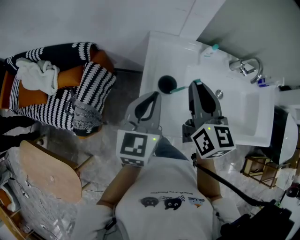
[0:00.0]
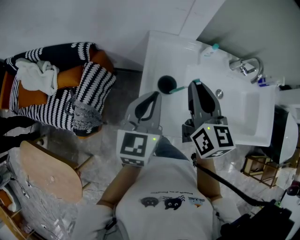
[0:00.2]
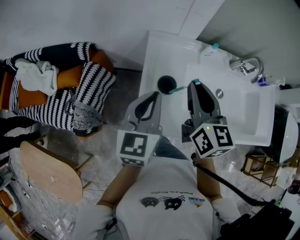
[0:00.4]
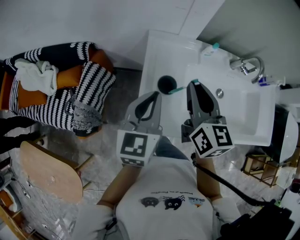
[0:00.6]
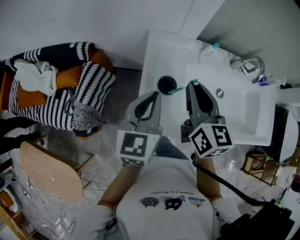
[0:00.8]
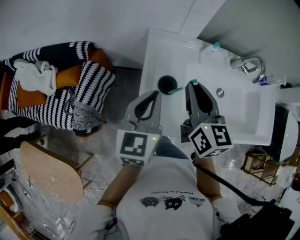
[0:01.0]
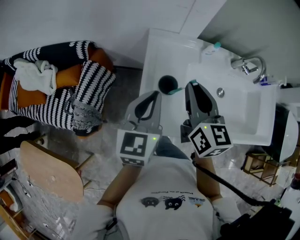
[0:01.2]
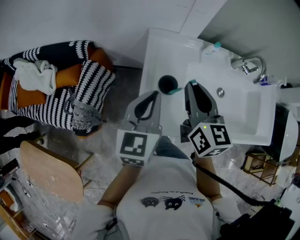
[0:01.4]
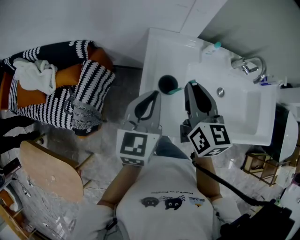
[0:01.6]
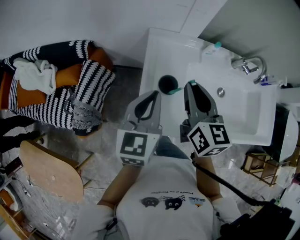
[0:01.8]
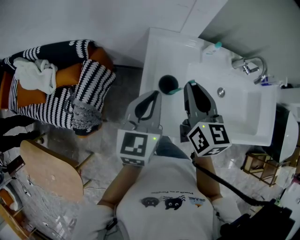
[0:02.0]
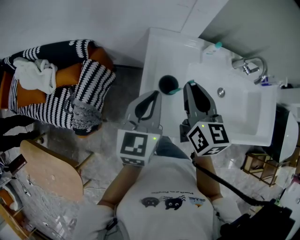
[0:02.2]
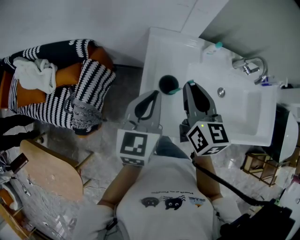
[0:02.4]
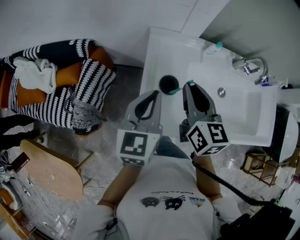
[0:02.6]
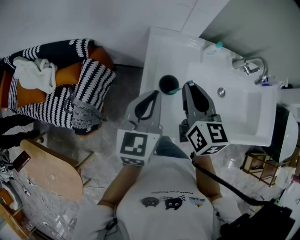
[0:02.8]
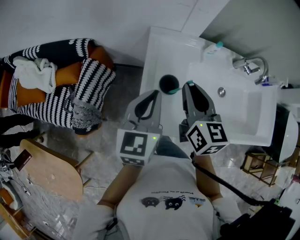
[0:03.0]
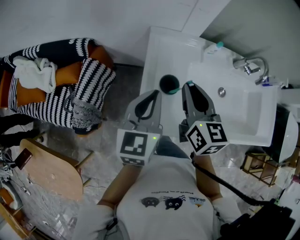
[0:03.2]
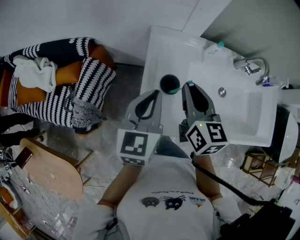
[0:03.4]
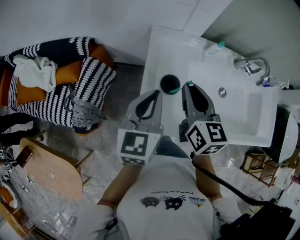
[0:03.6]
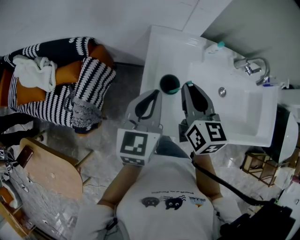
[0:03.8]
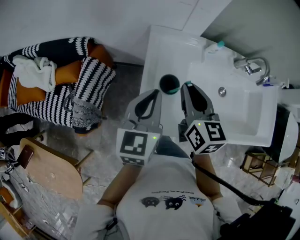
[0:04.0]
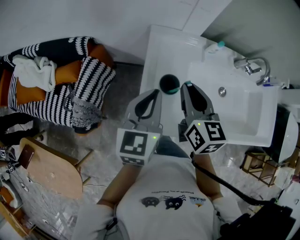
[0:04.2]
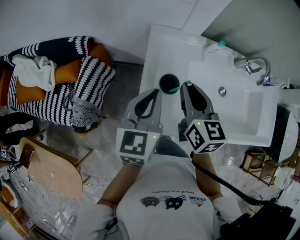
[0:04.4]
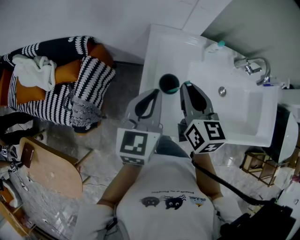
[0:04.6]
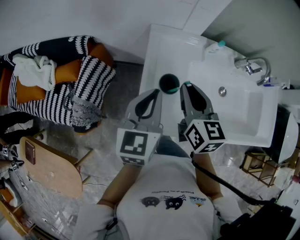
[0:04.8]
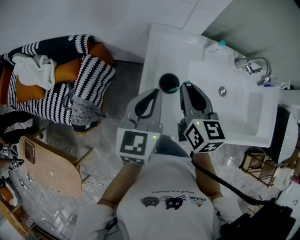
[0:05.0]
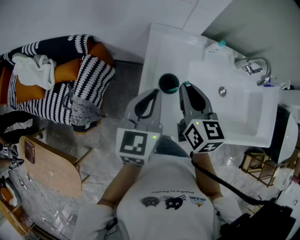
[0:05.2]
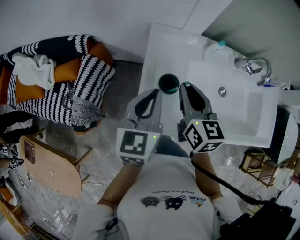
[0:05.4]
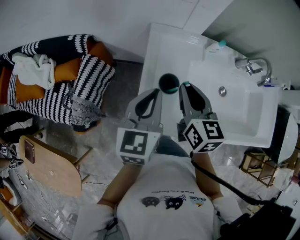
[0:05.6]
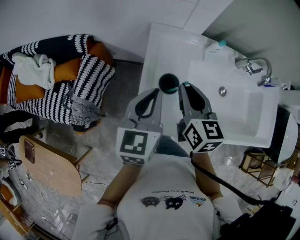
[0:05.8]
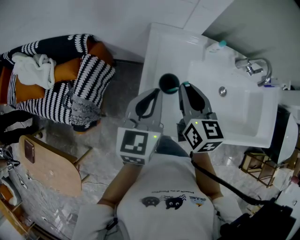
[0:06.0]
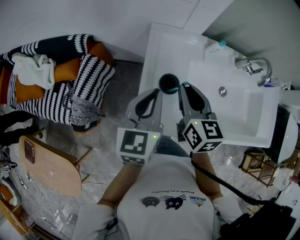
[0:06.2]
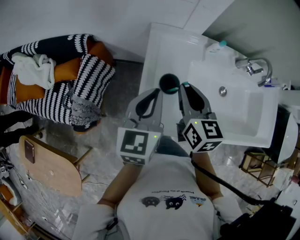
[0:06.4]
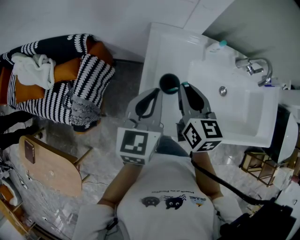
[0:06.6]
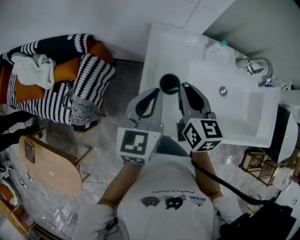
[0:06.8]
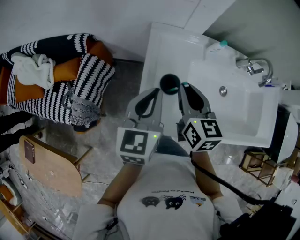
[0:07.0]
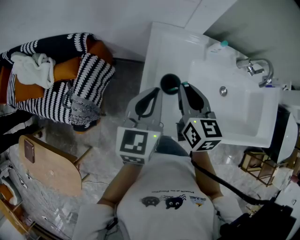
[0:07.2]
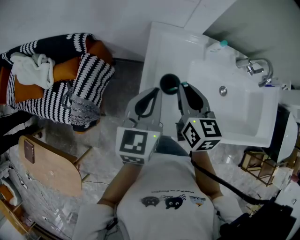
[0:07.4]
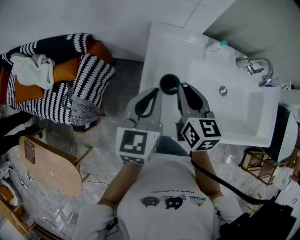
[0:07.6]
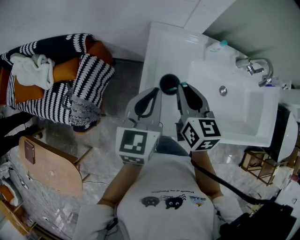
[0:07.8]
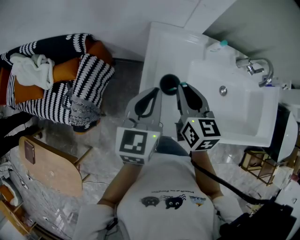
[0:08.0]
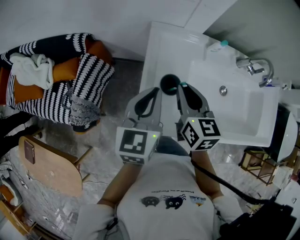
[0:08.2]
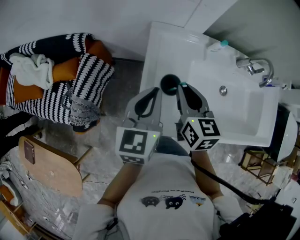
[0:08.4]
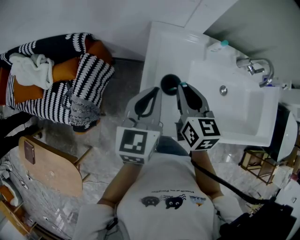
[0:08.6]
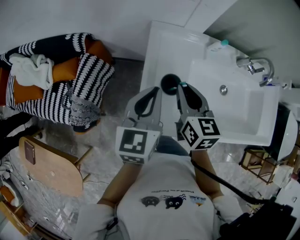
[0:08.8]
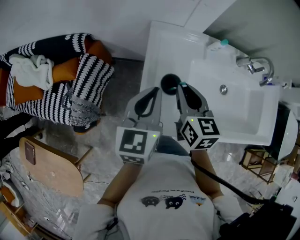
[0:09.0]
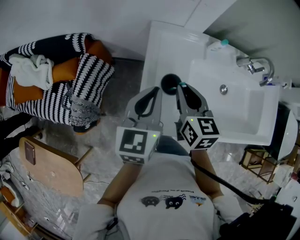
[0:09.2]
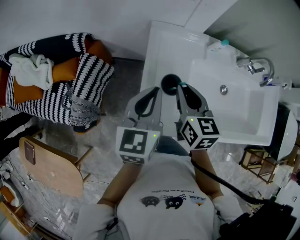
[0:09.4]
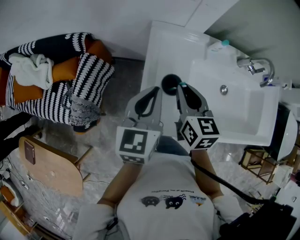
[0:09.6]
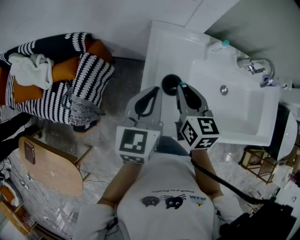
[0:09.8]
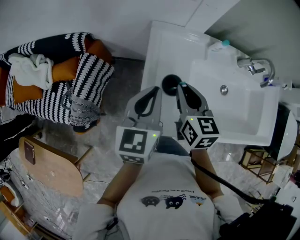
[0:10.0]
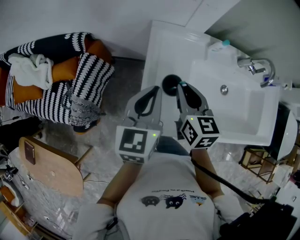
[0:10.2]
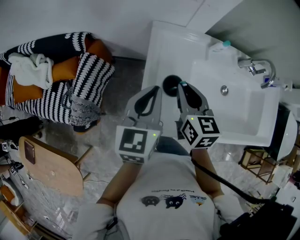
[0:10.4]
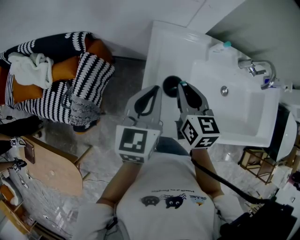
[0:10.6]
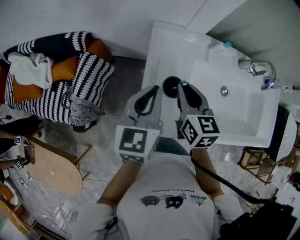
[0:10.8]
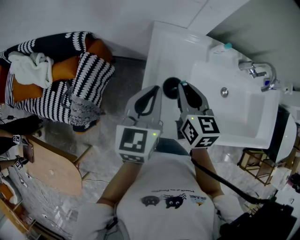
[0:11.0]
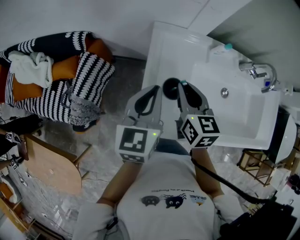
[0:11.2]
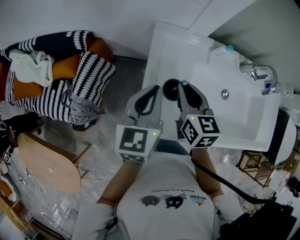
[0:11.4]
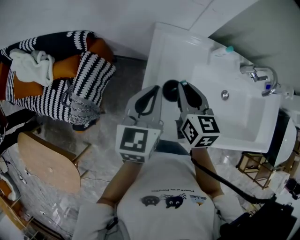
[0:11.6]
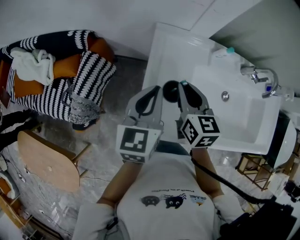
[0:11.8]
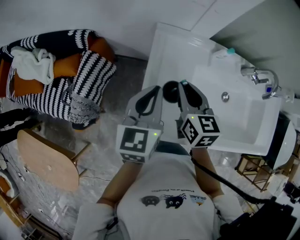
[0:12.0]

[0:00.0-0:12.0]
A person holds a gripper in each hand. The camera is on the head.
0:00.0 to 0:01.6: The grippers stay close to where they were, moving slightly.
0:01.6 to 0:04.4: The grippers make only small movements.
0:04.4 to 0:06.0: Both grippers stay about where they are.
0:06.0 to 0:09.0: The grippers move only a little.
0:09.0 to 0:10.4: The two grippers keep their place.
0:10.4 to 0:12.0: The grippers stay close to where they were, moving slightly.

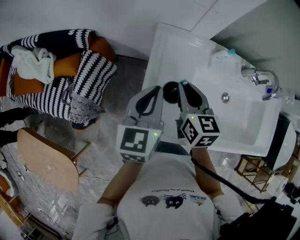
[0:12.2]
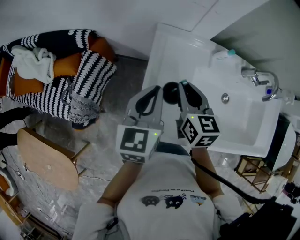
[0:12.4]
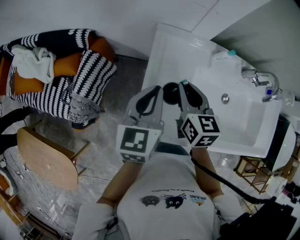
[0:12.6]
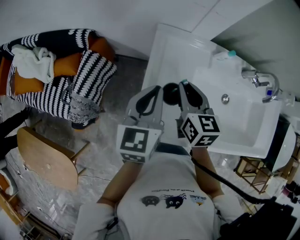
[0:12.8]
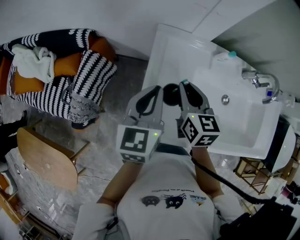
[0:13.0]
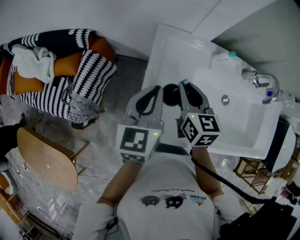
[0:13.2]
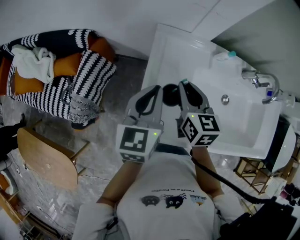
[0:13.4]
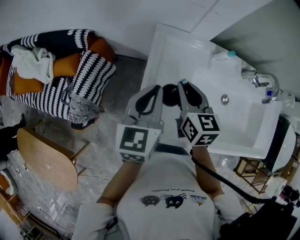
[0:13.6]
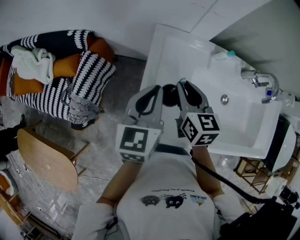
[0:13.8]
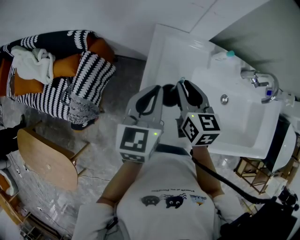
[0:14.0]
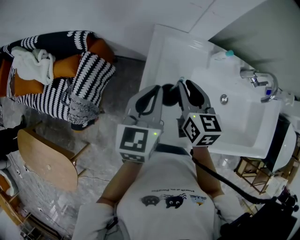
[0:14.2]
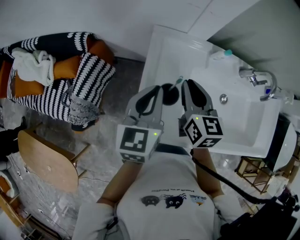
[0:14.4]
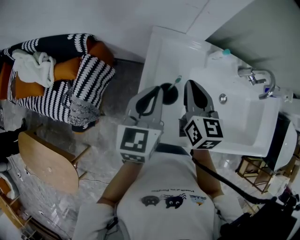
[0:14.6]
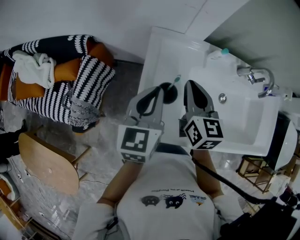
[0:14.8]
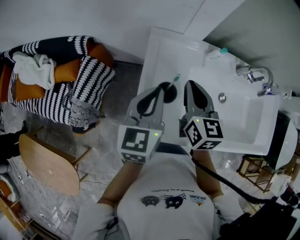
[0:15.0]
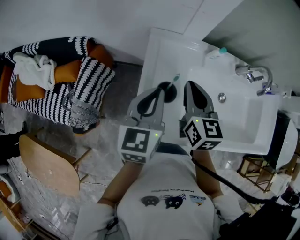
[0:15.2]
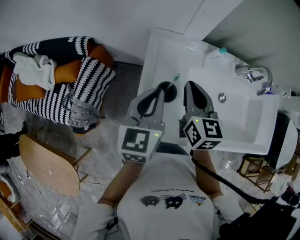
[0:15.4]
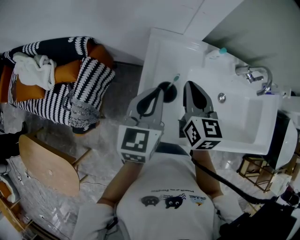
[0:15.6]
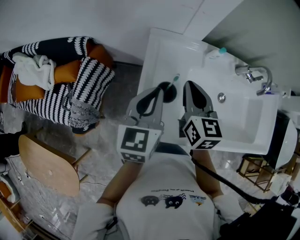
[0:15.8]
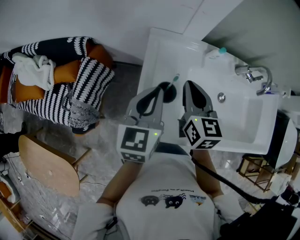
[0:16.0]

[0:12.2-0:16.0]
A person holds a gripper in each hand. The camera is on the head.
0:12.2 to 0:13.4: The grippers move only a little.
0:13.4 to 0:14.8: The right gripper shifts by approximately 5 cm.
0:14.8 to 0:16.0: Both grippers stay about where they are.

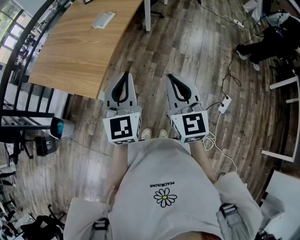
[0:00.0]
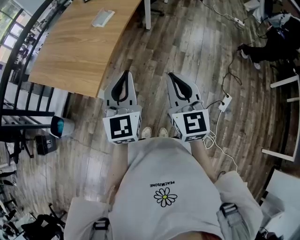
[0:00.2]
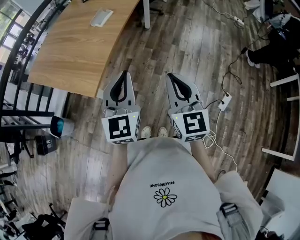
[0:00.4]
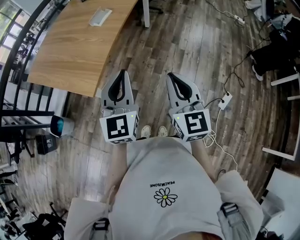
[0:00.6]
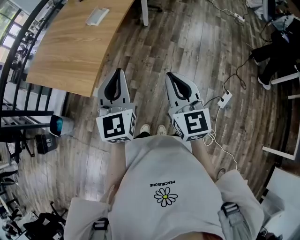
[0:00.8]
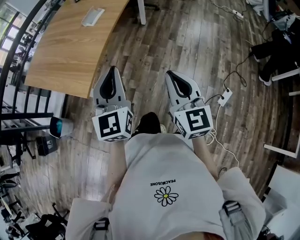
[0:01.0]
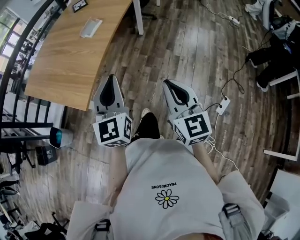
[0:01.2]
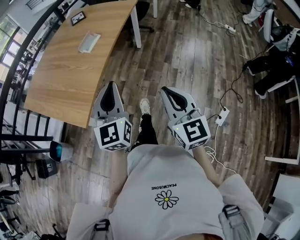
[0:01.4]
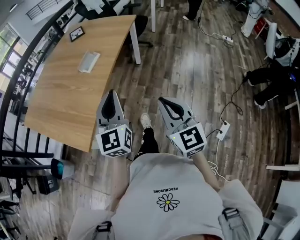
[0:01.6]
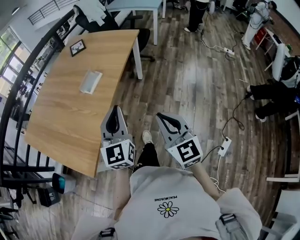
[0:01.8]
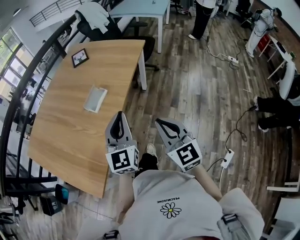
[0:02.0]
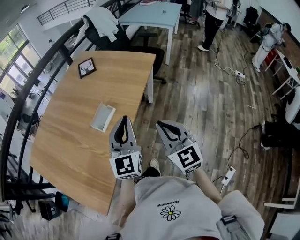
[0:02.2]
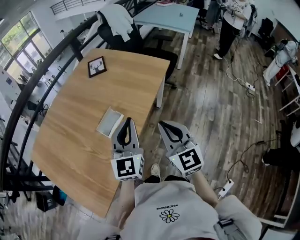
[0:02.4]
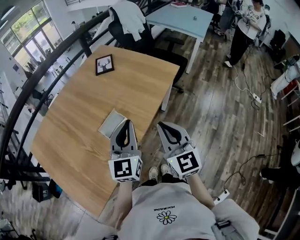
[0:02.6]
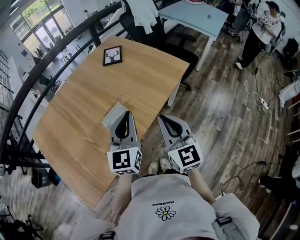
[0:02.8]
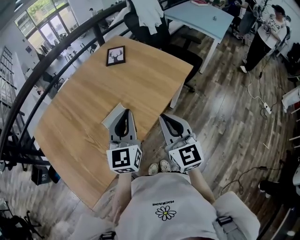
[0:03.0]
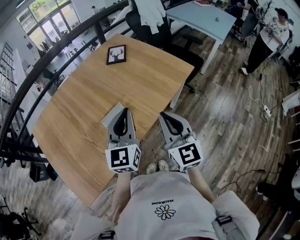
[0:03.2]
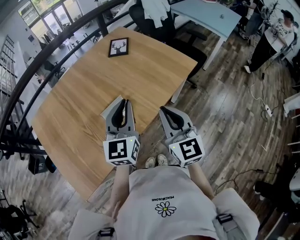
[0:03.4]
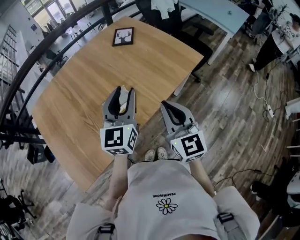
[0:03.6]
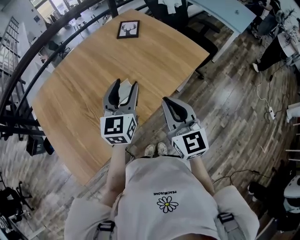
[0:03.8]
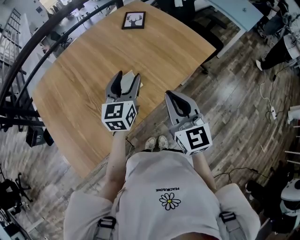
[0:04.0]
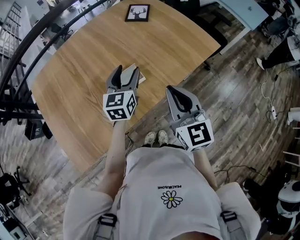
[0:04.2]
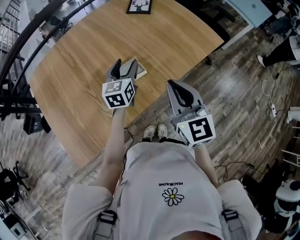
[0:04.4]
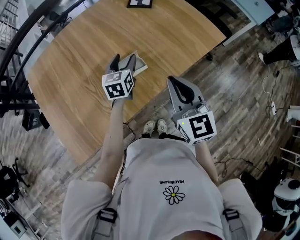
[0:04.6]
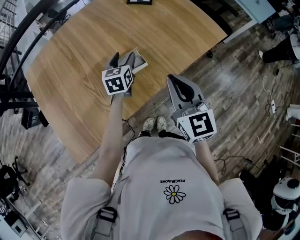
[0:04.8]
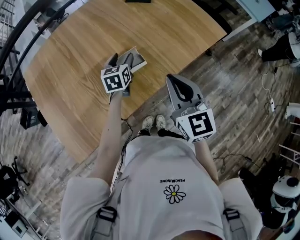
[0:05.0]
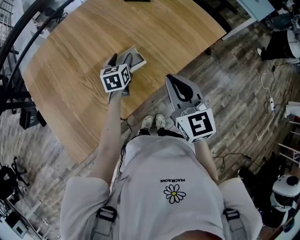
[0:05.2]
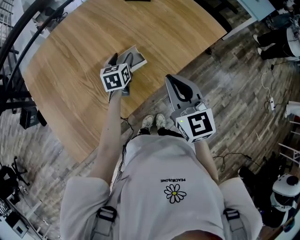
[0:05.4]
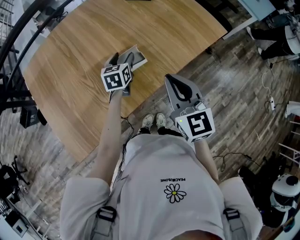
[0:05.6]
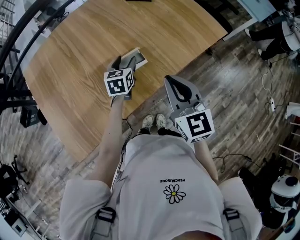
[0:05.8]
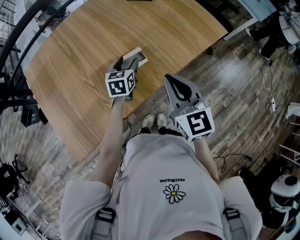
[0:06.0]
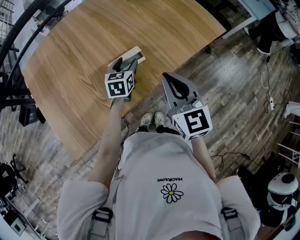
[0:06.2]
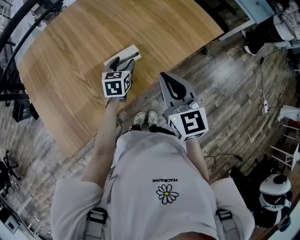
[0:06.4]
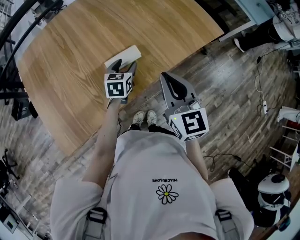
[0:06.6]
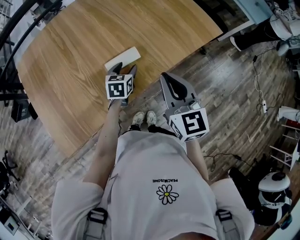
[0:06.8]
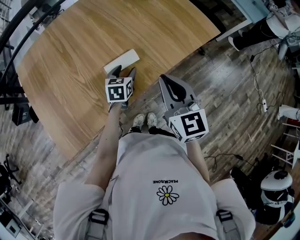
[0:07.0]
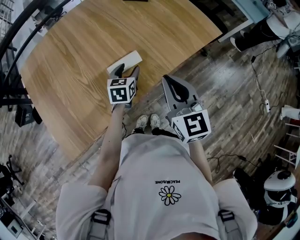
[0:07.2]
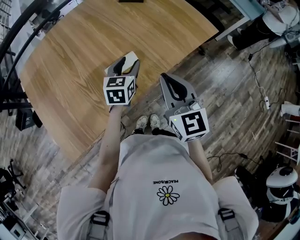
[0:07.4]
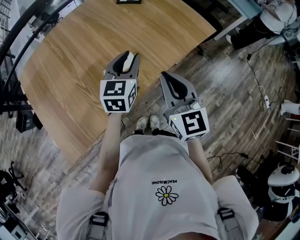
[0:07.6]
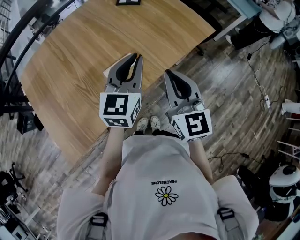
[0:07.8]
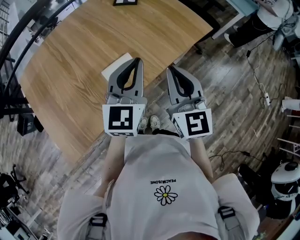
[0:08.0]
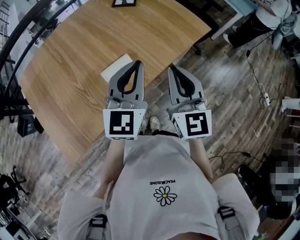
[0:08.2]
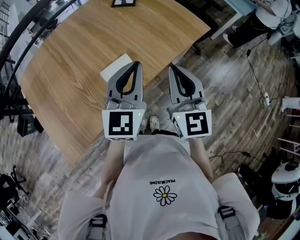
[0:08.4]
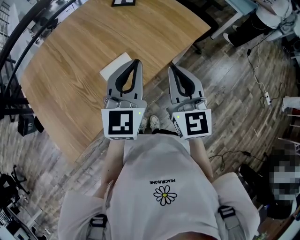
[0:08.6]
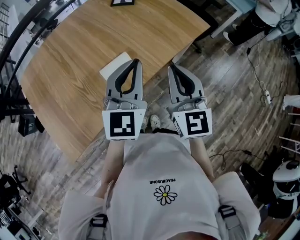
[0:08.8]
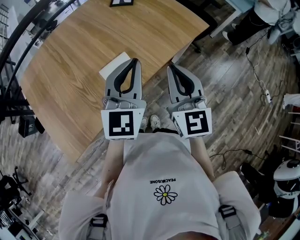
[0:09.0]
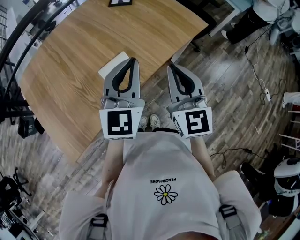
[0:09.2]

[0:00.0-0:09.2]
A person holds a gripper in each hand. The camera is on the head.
0:00.0 to 0:01.6: Both grippers move forward, some 15 cm.
0:01.6 to 0:03.0: The grippers both shift forward by approximately 40 cm. The right gripper rotates approximately 20 degrees.
0:03.0 to 0:04.6: The left gripper travels downward, forward and to the left by some 25 cm, swivels approximately 30 degrees, and opens up. Meanwhile the right gripper moves to the left, approximately 5 cm.
0:04.6 to 0:06.2: The left gripper shifts approximately 5 cm downward.
0:06.2 to 0:07.6: The left gripper moves upward, approximately 15 cm, and closes up.
0:07.6 to 0:09.2: The left gripper goes some 15 cm upward and backward, and closes. Meanwhile the right gripper ends up approximately 5 cm from where it was.
